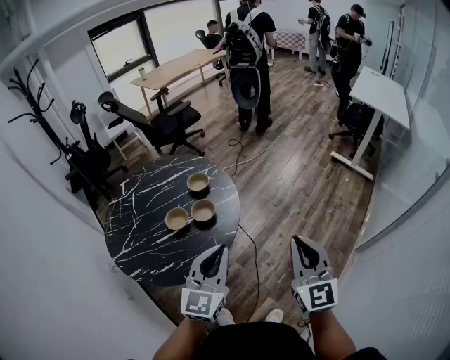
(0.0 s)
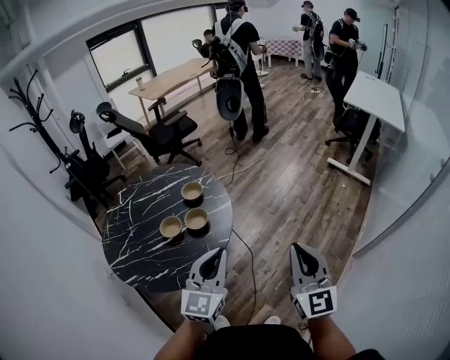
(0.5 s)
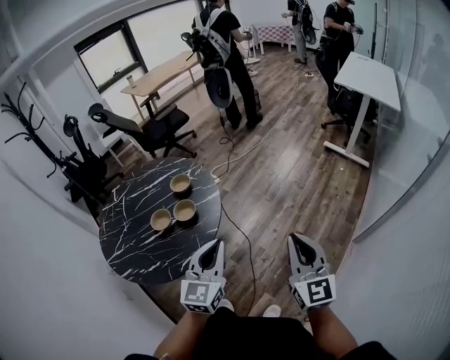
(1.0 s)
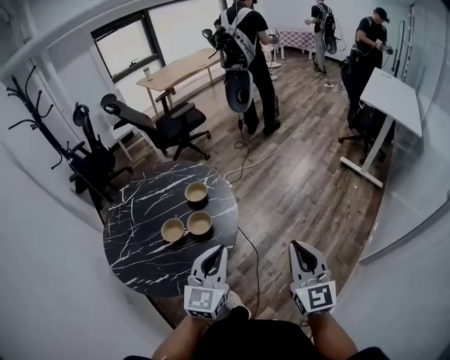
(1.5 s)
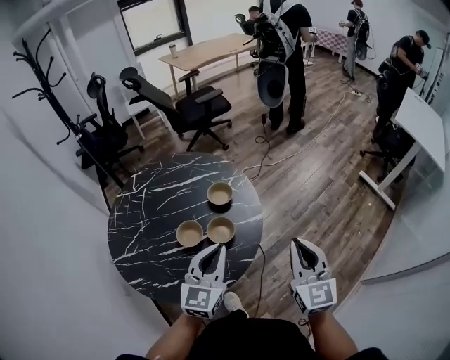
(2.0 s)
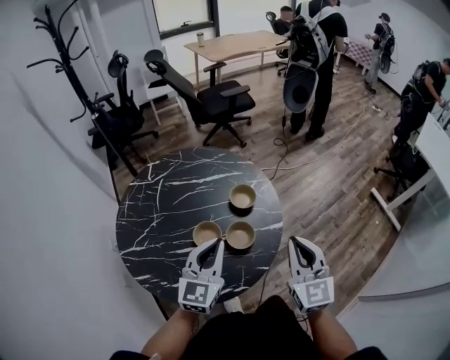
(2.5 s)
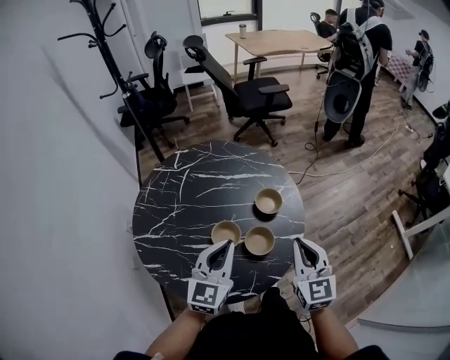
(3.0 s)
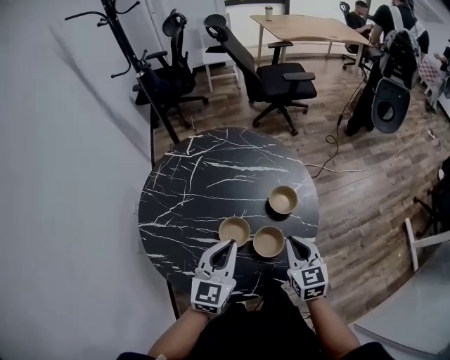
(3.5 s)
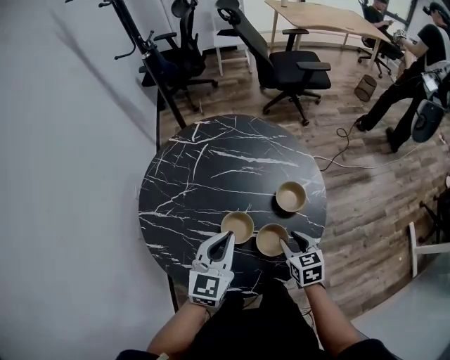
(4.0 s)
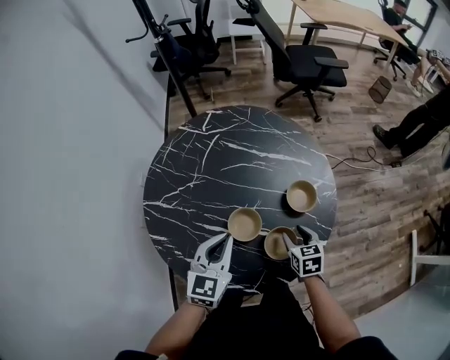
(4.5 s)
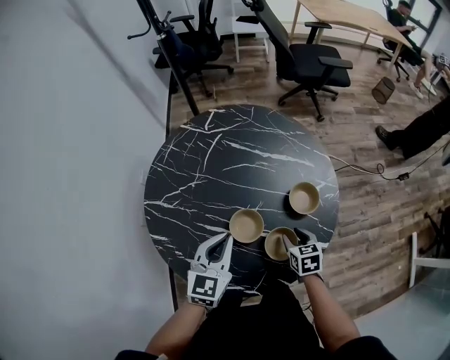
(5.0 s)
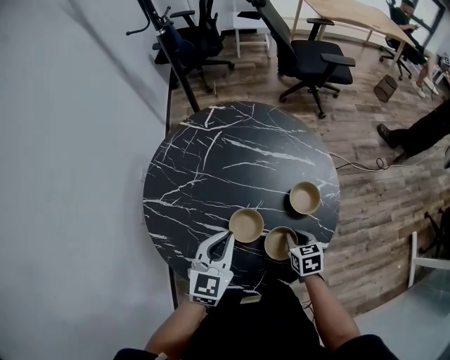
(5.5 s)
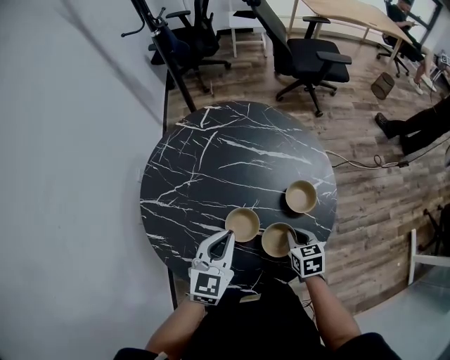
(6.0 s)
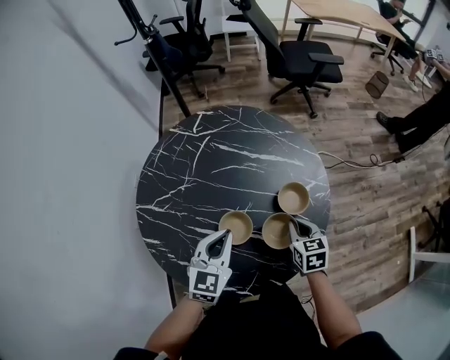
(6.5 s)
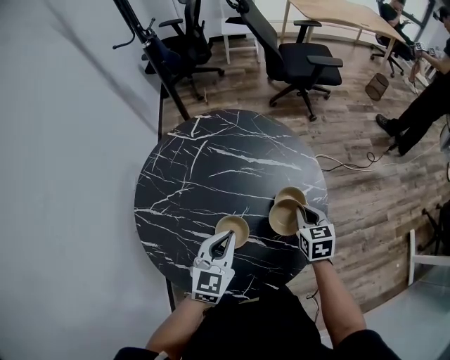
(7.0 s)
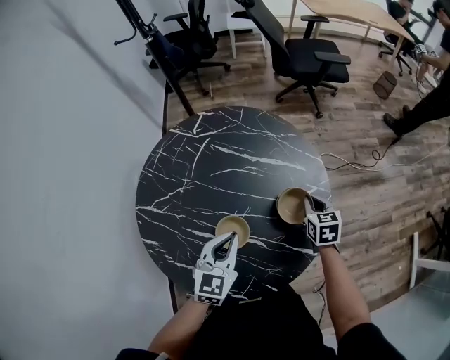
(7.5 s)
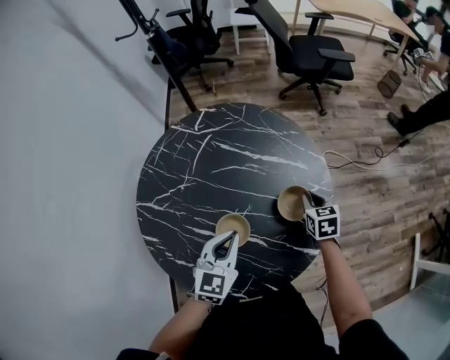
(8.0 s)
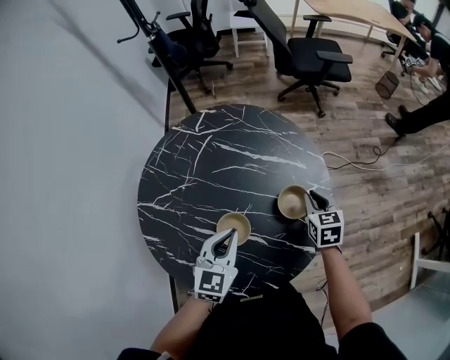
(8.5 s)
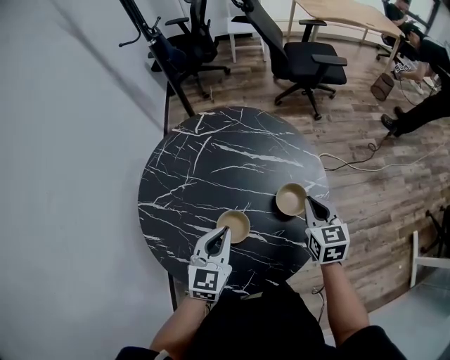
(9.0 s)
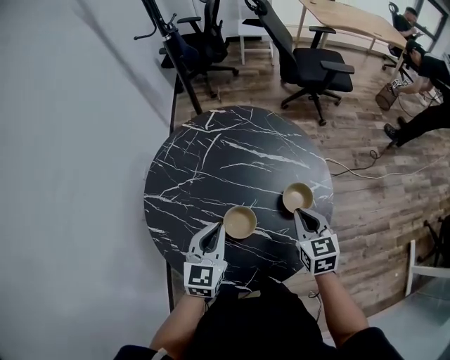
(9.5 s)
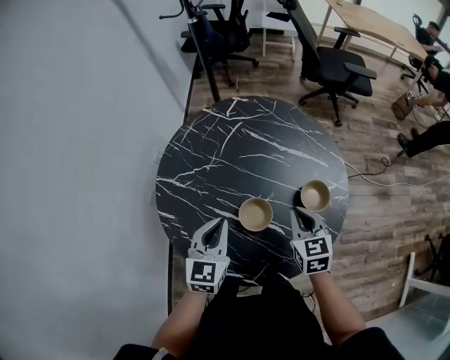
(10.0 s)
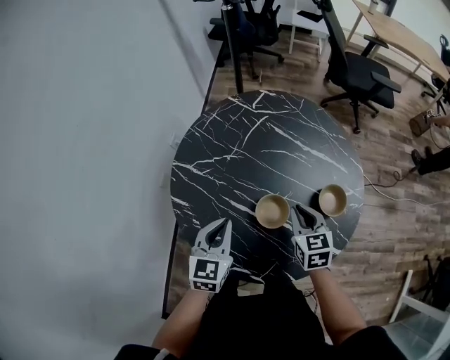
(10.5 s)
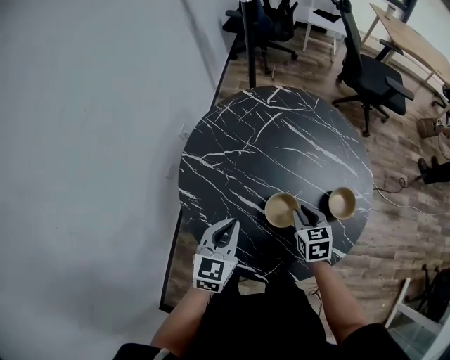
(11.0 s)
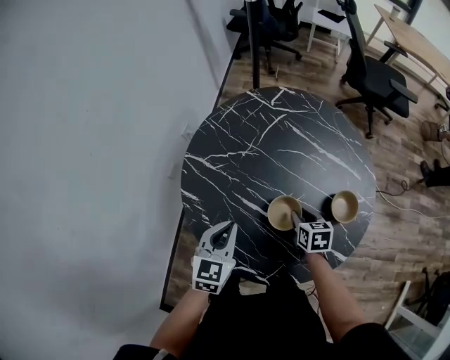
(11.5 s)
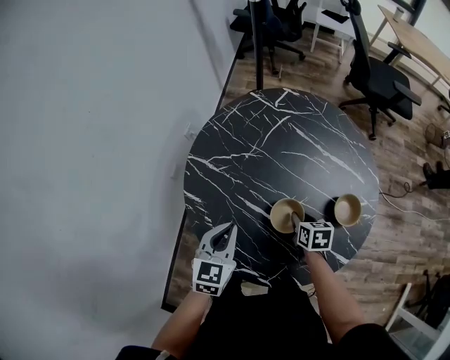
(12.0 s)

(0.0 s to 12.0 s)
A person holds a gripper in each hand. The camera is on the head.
0.0 s - 2.0 s: The left gripper travels forward, to the left and downward by roughly 20 cm; the right gripper shifts some 20 cm forward and to the left.
2.0 s - 4.0 s: The left gripper shifts by roughly 20 cm, and changes its angle by some 30 degrees. The right gripper goes some 25 cm downward, angles its fingers downward, by approximately 40 degrees, and opens.
4.0 s - 6.0 s: The right gripper moves about 5 cm, and closes up.
6.0 s - 8.0 s: The right gripper is displaced forward and to the right by approximately 15 cm. Meanwhile the left gripper shifts by some 5 cm.
8.0 s - 10.0 s: The right gripper goes roughly 20 cm to the left, upward and backward, while the left gripper goes roughly 10 cm to the left.
10.0 s - 12.0 s: The left gripper is displaced to the left by approximately 5 cm, while the right gripper shifts about 15 cm downward and to the left, and rotates roughly 30 degrees.

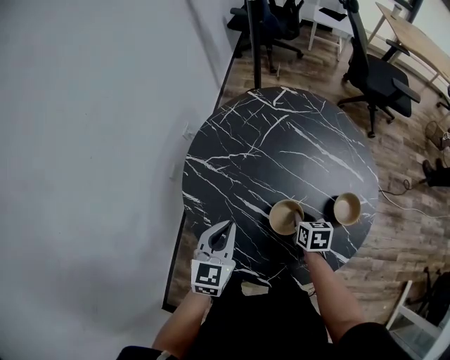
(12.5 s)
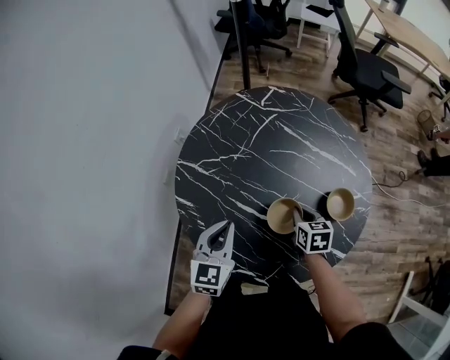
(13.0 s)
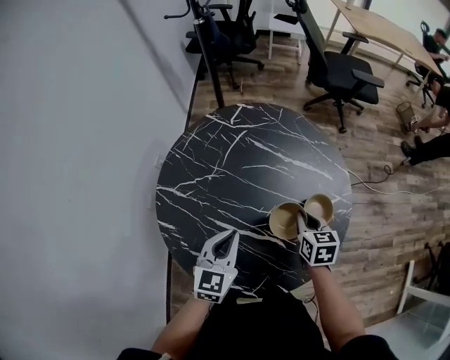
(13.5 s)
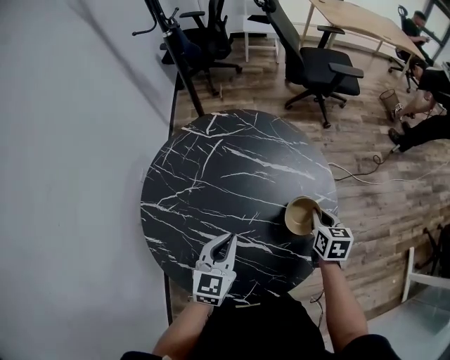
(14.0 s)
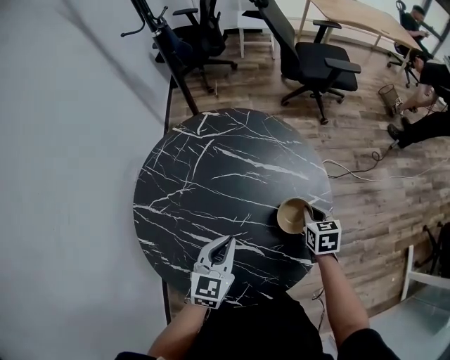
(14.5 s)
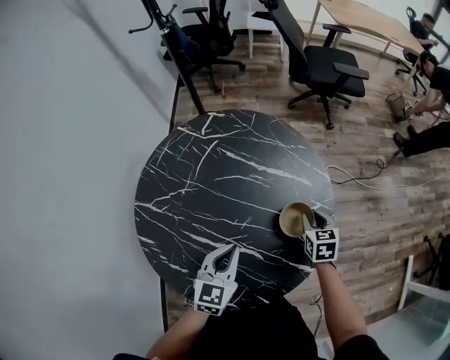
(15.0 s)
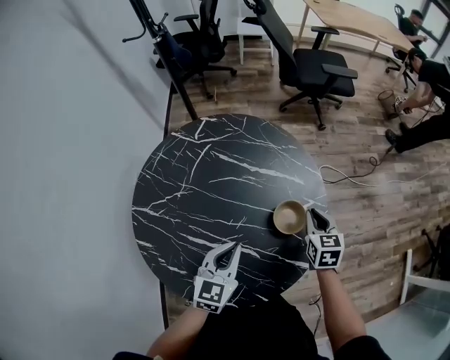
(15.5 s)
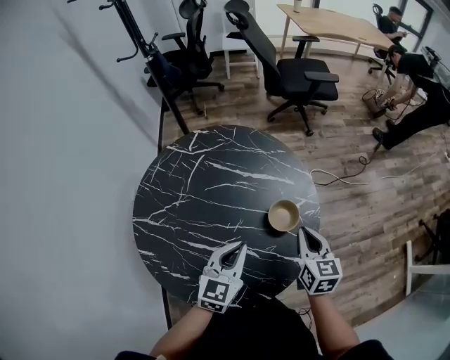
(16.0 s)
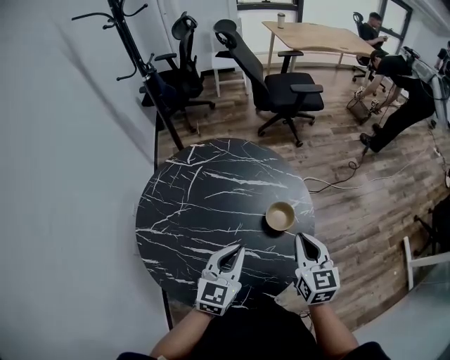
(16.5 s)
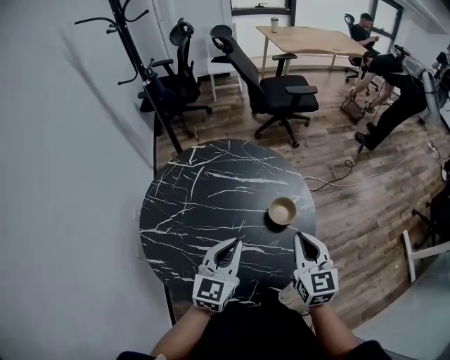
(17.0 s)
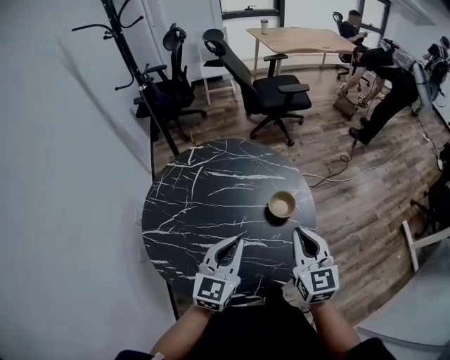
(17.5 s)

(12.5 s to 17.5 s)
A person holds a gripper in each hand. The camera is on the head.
12.5 s - 15.0 s: Both grippers travel together to the right, roughly 20 cm.
15.0 s - 17.5 s: The right gripper moves upward and backward, about 30 cm, tips its fingers upward by roughly 40 degrees, and closes its fingers. The left gripper goes roughly 15 cm upward, and changes its angle by roughly 20 degrees.

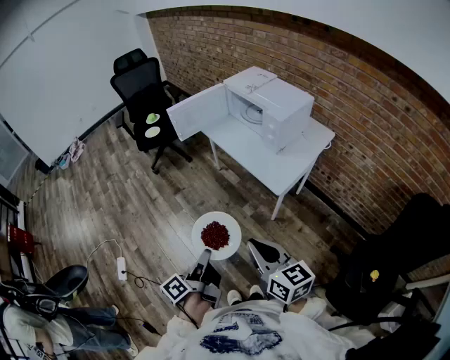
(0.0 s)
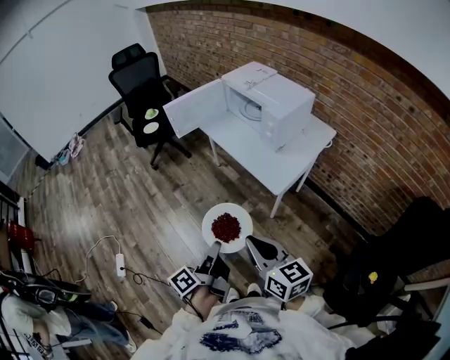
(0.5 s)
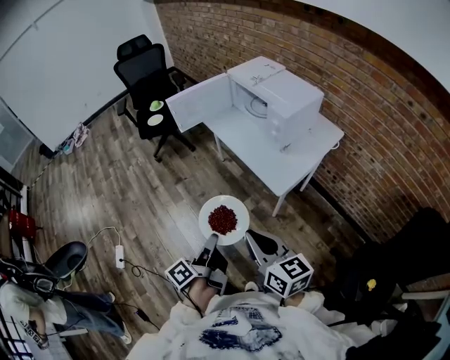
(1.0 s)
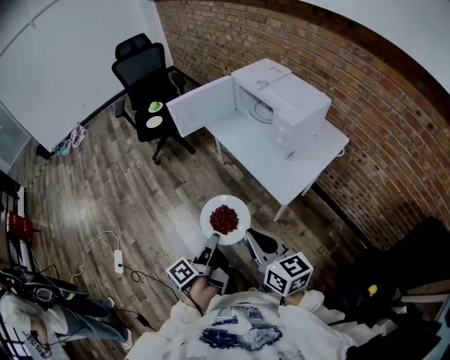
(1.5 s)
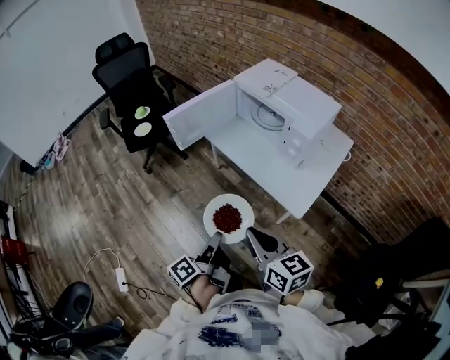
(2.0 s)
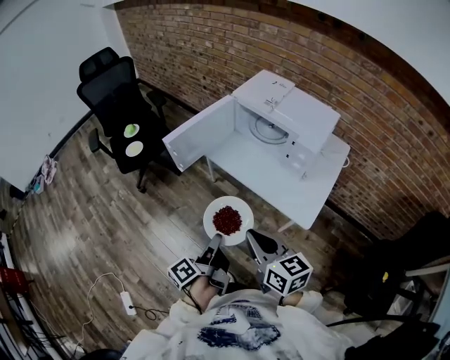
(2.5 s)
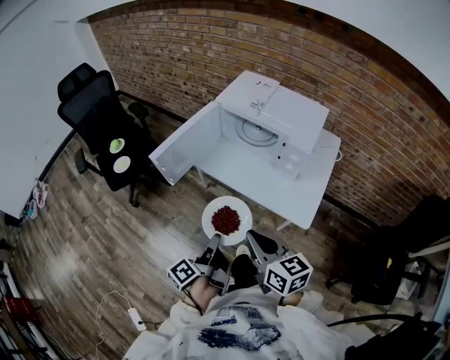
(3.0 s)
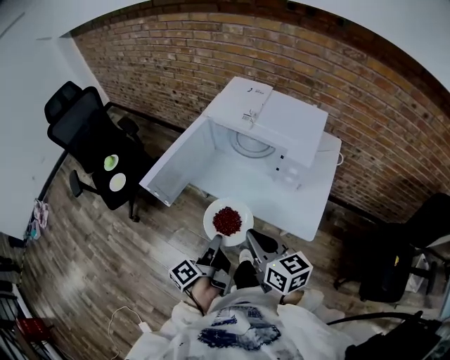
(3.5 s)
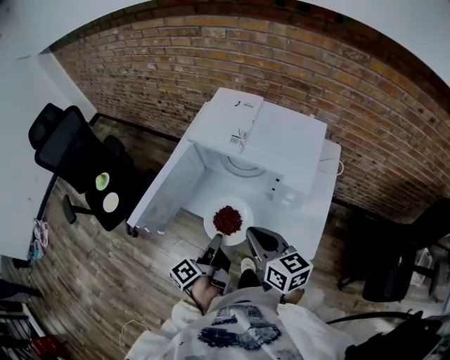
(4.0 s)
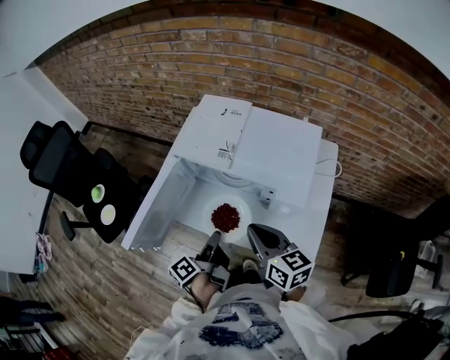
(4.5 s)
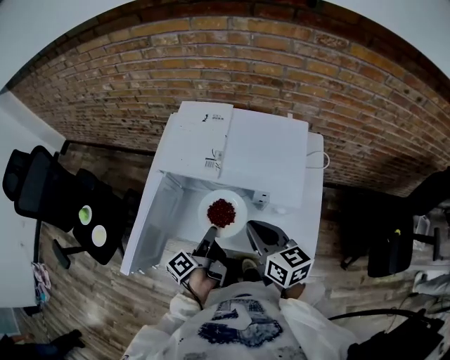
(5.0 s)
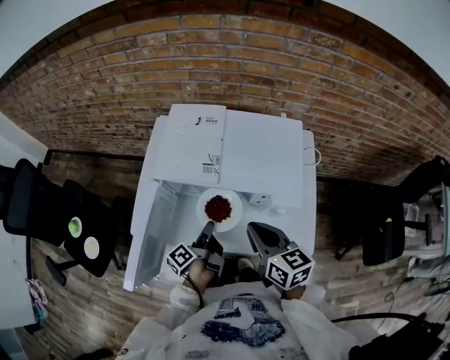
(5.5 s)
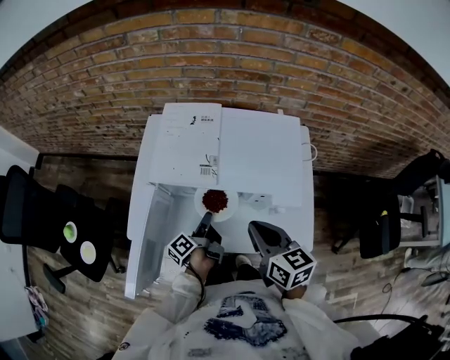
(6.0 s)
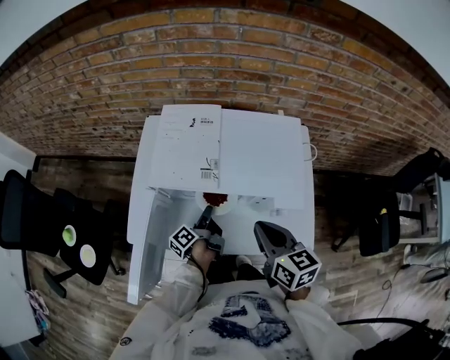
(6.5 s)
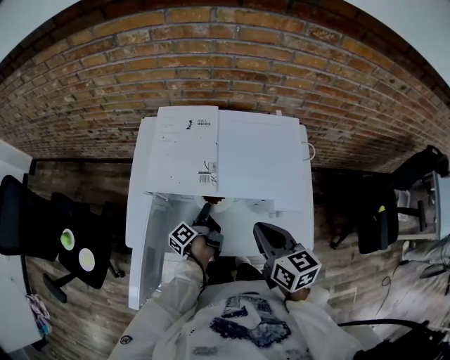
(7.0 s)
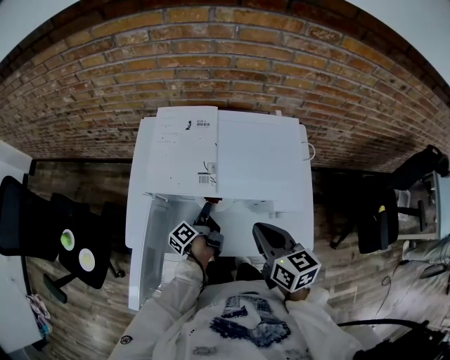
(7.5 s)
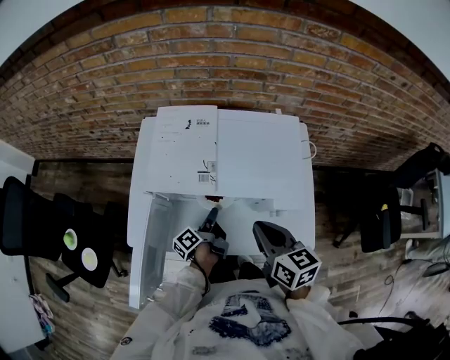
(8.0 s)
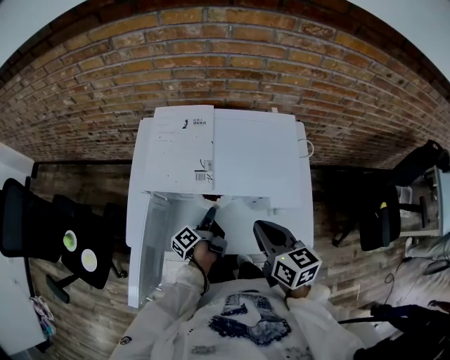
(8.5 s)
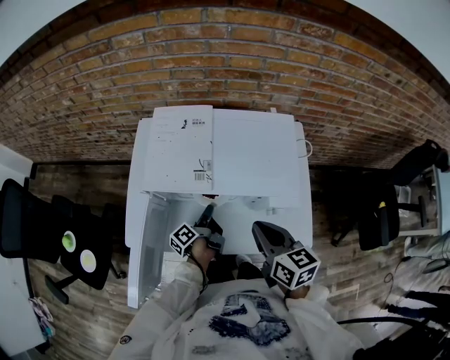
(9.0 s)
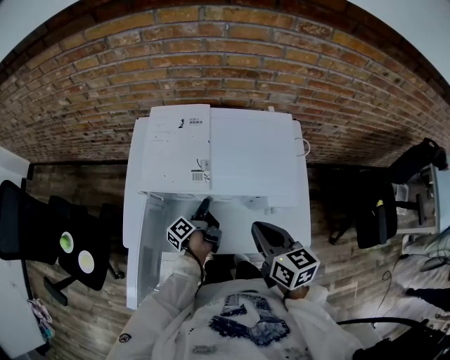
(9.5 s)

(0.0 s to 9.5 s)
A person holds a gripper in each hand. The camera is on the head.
0.0 s - 2.0 s: The right gripper shifts by about 25 cm.
2.0 s - 4.0 s: The right gripper moves about 30 cm, and rotates roughly 20 degrees.
4.0 s - 5.5 s: The right gripper ends up approximately 10 cm from where it was.
